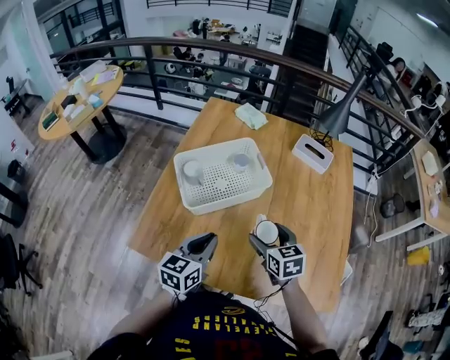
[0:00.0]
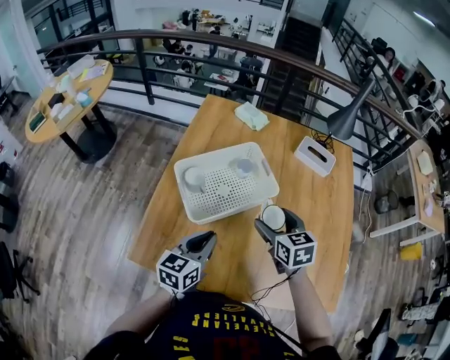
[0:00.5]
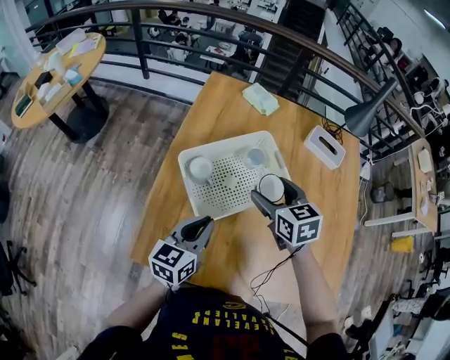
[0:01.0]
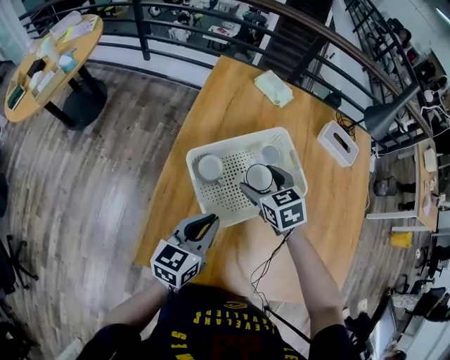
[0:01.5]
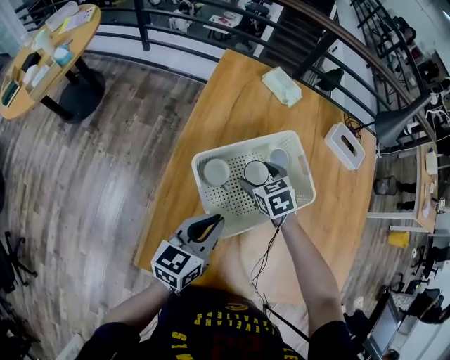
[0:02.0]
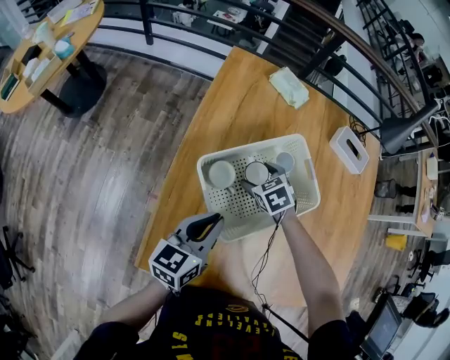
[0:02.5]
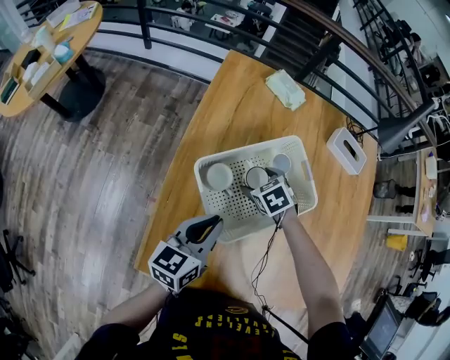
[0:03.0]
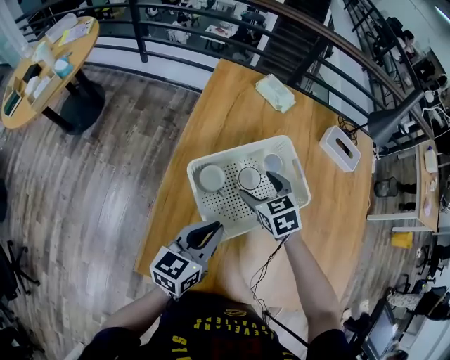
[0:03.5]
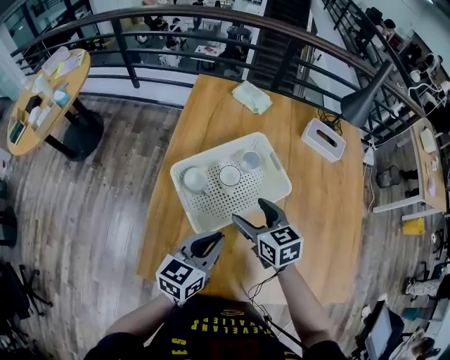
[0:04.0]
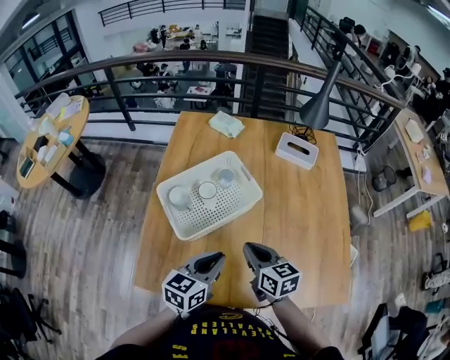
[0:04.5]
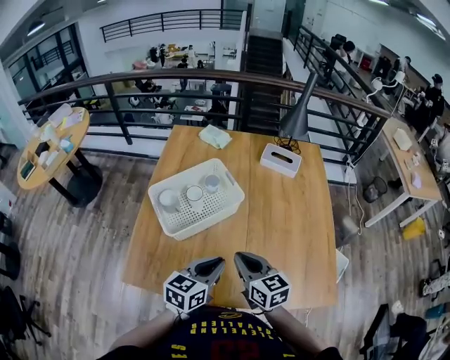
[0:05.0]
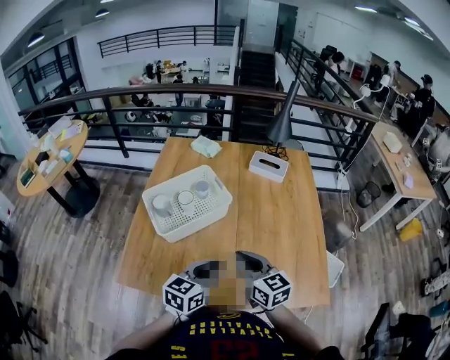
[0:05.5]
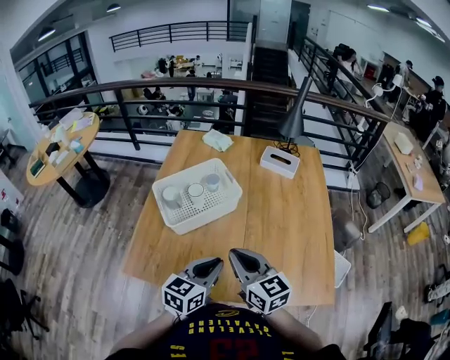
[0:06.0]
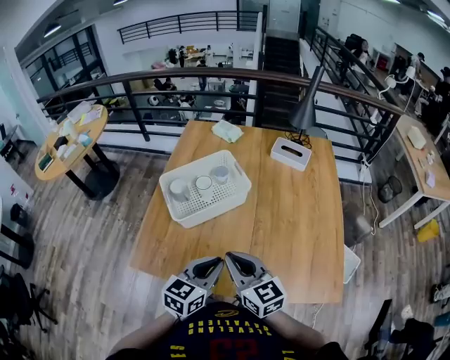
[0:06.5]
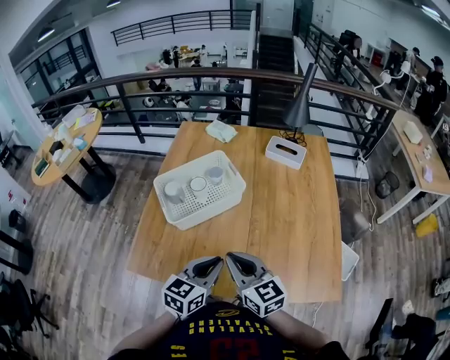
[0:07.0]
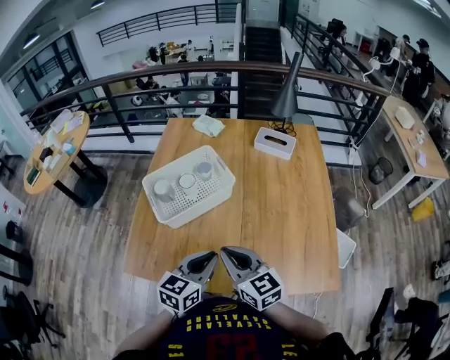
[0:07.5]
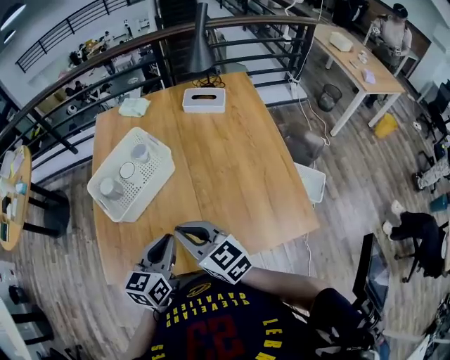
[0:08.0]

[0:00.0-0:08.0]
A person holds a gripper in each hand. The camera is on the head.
0:00.0 to 0:02.0: The left gripper goes approximately 20 cm forward and to the left; the right gripper travels forward and to the left by some 30 cm, and swivels approximately 20 degrees.
0:02.0 to 0:04.0: The right gripper travels backward, upward and to the right by about 15 cm, and rotates some 30 degrees, while the left gripper goes approximately 10 cm to the right and backward.
0:04.0 to 0:06.0: The left gripper is displaced to the right and backward by approximately 20 cm. Meanwhile the right gripper goes about 25 cm backward, to the right and upward, rotates roughly 20 degrees, and closes up.
0:06.0 to 0:08.0: The grippers stay close to where they were, moving slightly.

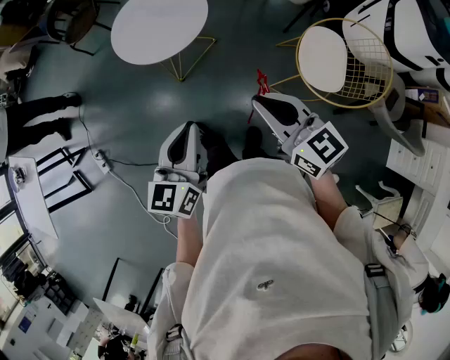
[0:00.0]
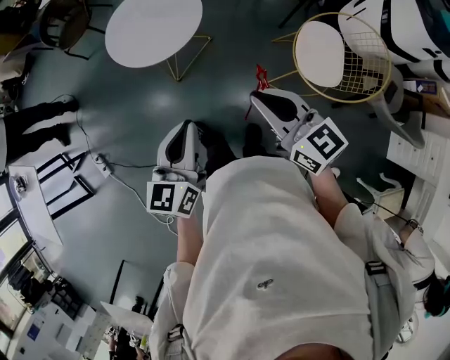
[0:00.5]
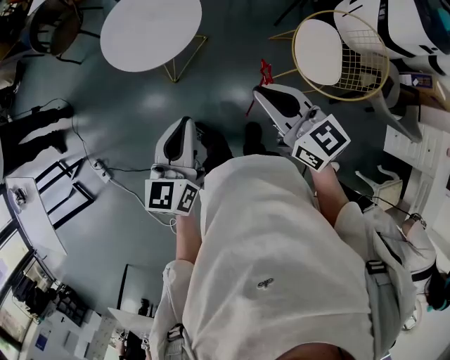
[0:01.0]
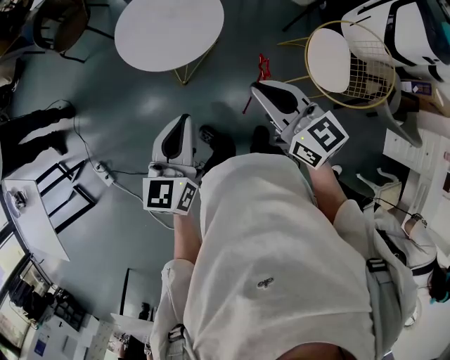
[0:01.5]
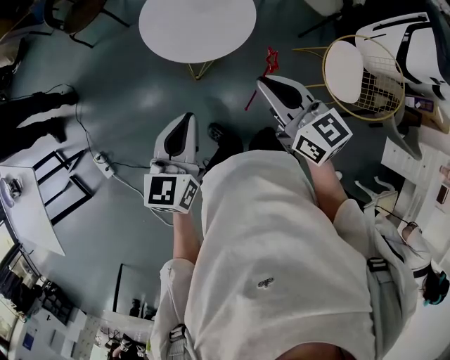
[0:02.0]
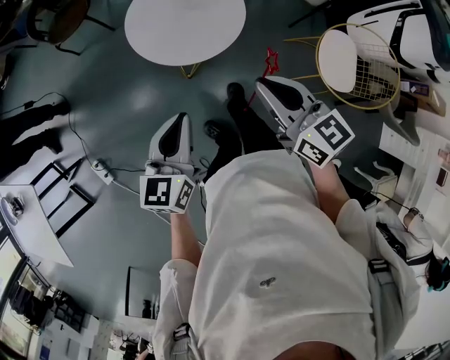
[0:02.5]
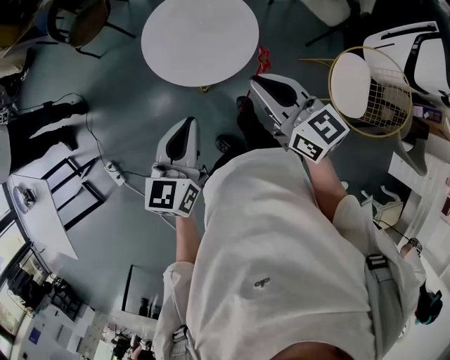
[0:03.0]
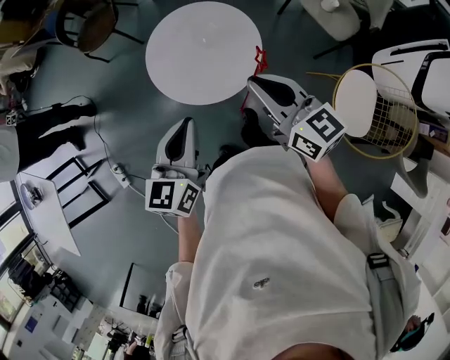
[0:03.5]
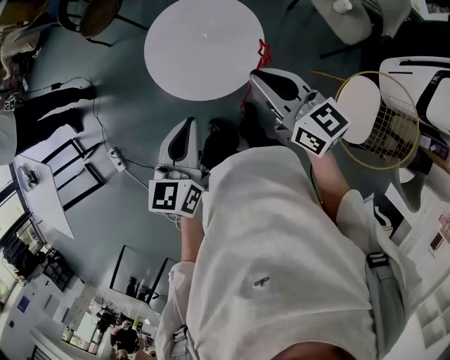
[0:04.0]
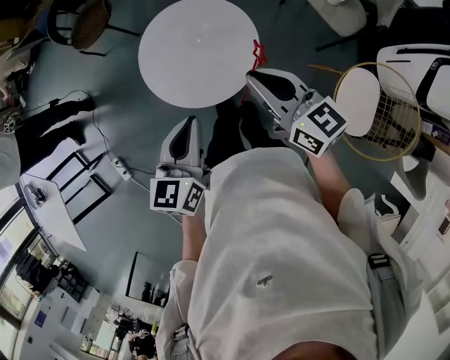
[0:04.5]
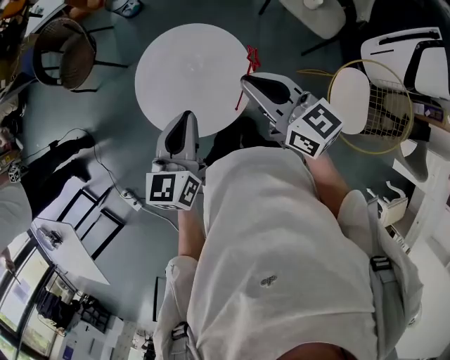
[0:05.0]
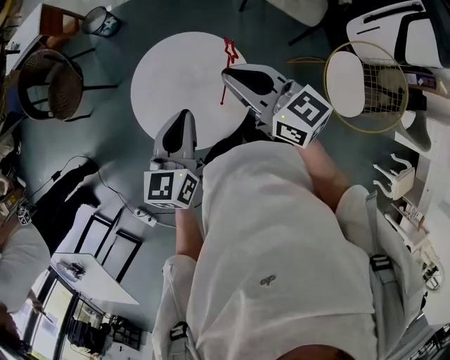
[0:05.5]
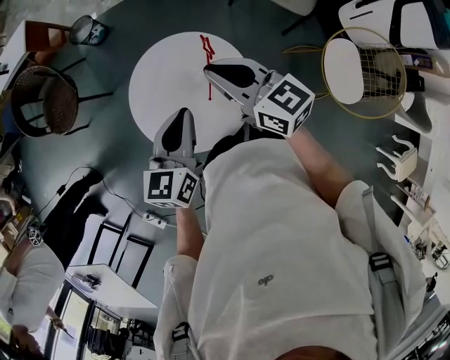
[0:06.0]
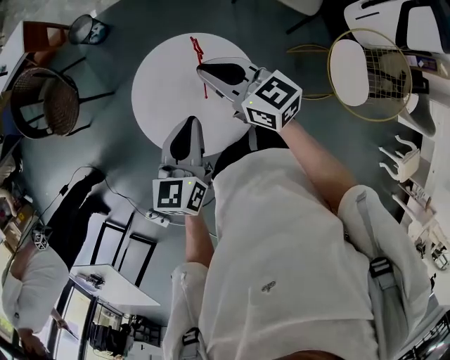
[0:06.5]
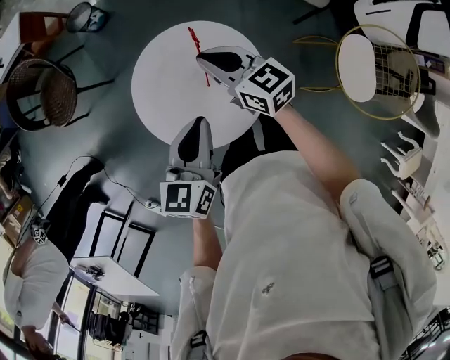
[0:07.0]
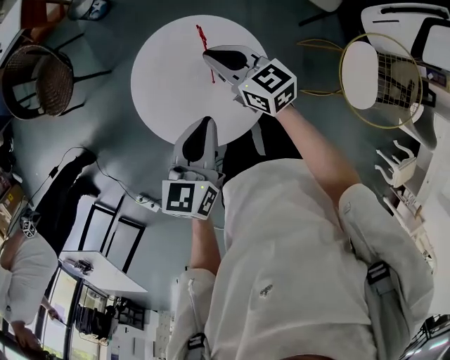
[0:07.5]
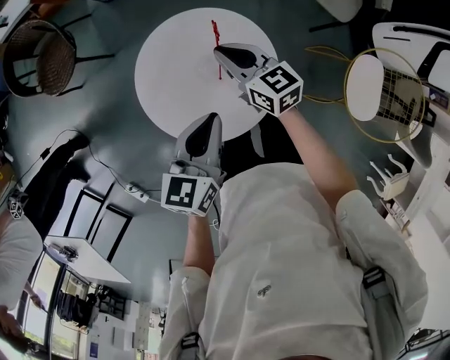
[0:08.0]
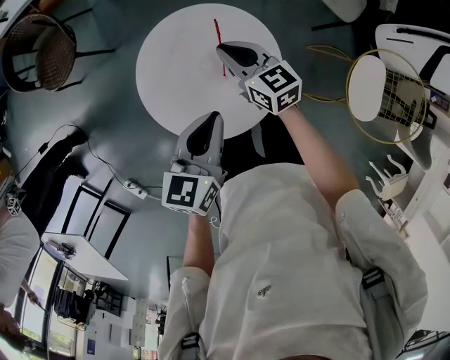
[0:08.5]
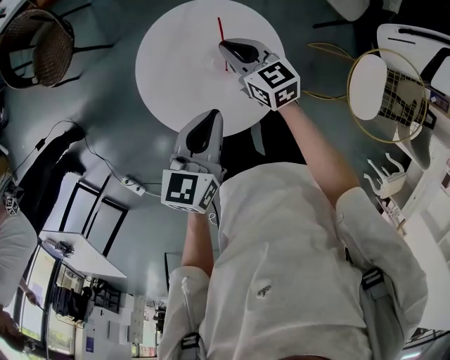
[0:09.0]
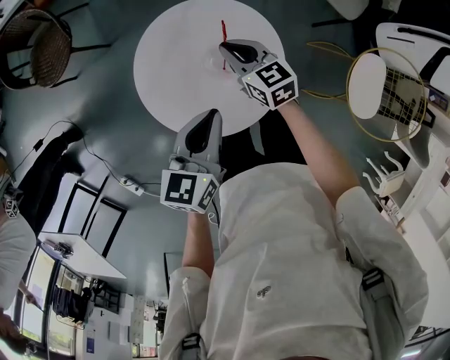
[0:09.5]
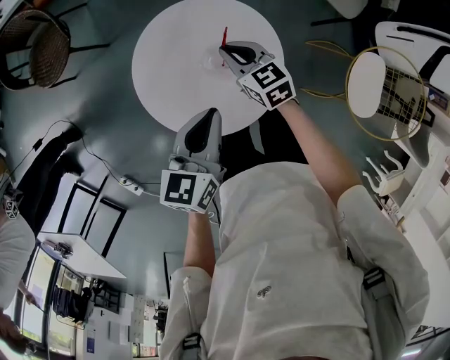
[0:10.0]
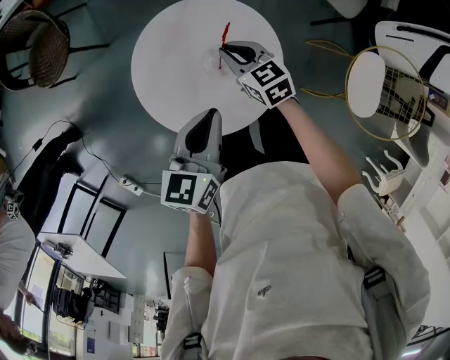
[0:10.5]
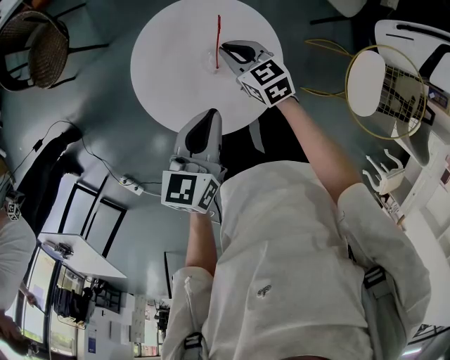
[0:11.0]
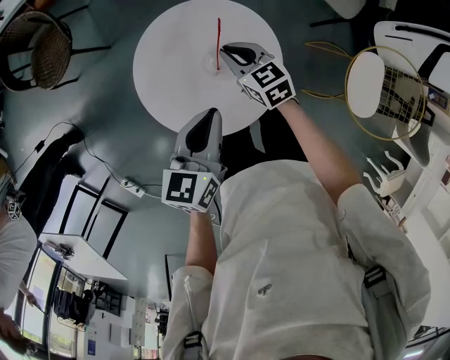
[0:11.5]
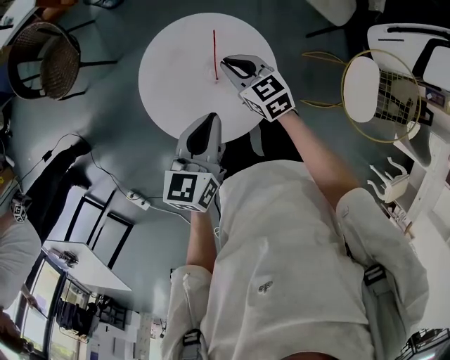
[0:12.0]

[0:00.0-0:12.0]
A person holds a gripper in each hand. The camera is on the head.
0:00.0 to 0:02.0: Both grippers move to the left and forward, about 25 cm.
0:02.0 to 0:04.0: Both grippers move forward and to the right, approximately 20 cm.
0:04.0 to 0:06.0: Both grippers move forward, about 20 cm. The left gripper changes its angle by approximately 30 degrees.
0:06.0 to 0:08.0: The left gripper travels downward by some 5 cm, while the right gripper shifts about 15 cm downward.
0:08.0 to 0:10.0: The right gripper heads downward, covering about 10 cm.
0:10.0 to 0:12.0: The right gripper moves approximately 5 cm.

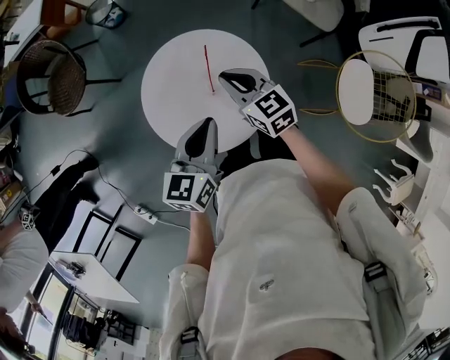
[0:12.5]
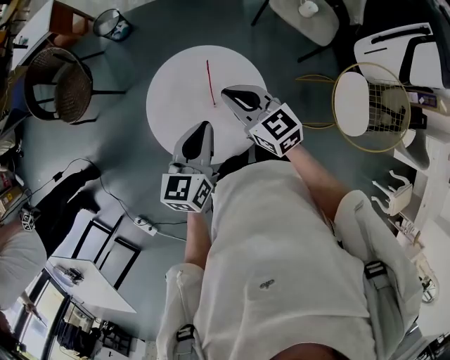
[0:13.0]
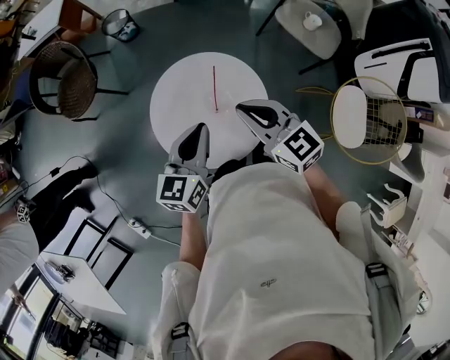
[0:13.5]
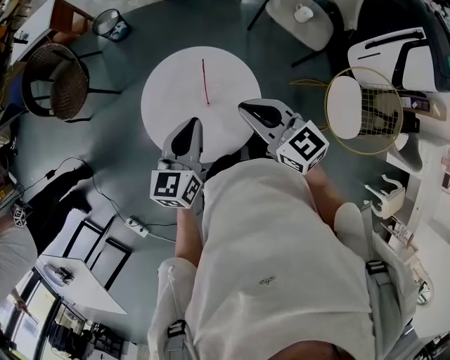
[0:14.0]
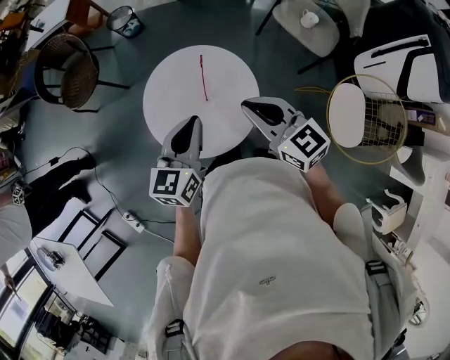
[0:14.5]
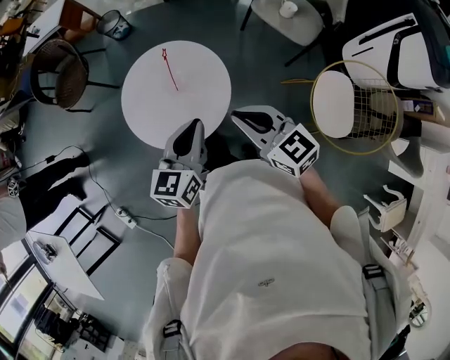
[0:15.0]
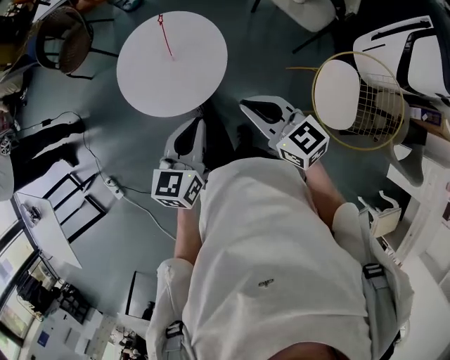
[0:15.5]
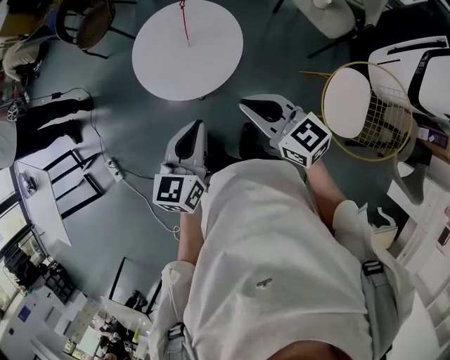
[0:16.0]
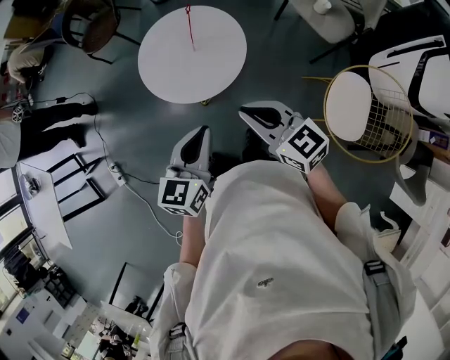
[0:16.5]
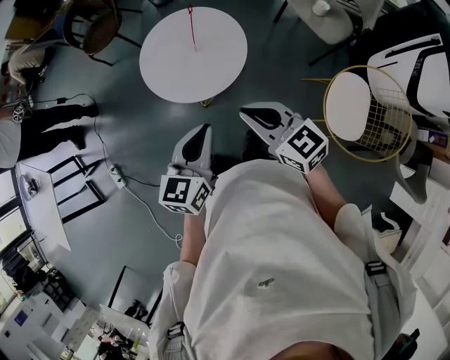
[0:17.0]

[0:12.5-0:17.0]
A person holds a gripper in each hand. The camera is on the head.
0:12.5 to 0:14.5: The right gripper heads upward, backward and to the right, covering some 20 cm. The left gripper is displaced upward by about 5 cm.
0:14.5 to 0:17.0: The grippers both shift backward by some 25 cm.

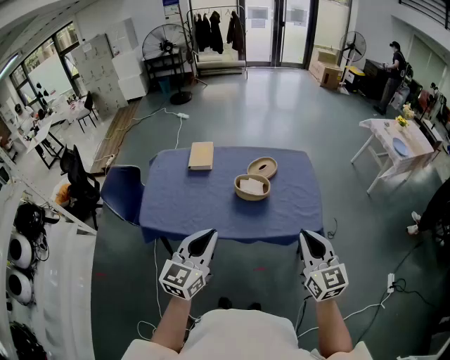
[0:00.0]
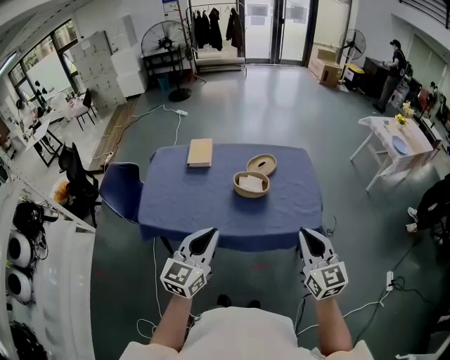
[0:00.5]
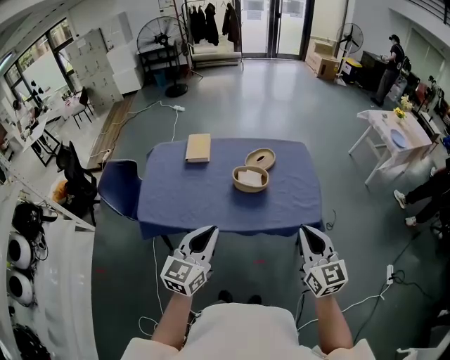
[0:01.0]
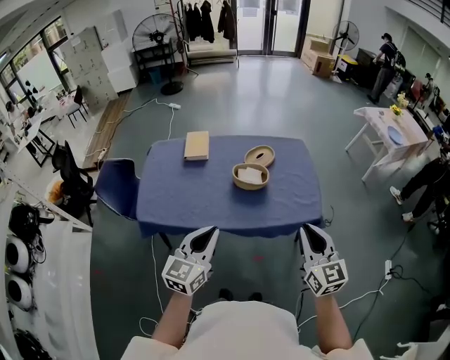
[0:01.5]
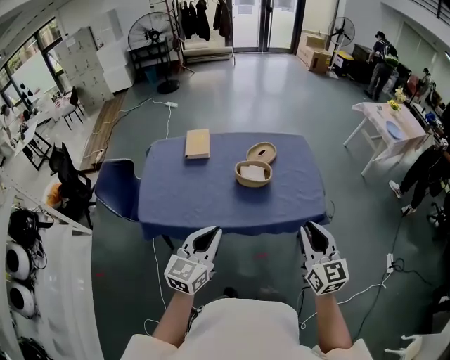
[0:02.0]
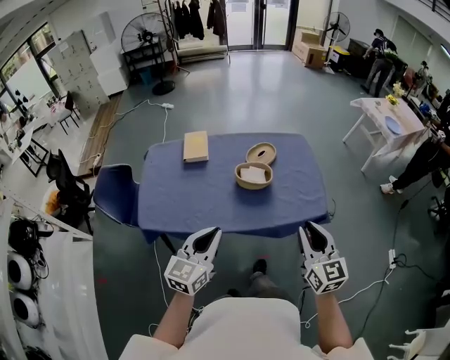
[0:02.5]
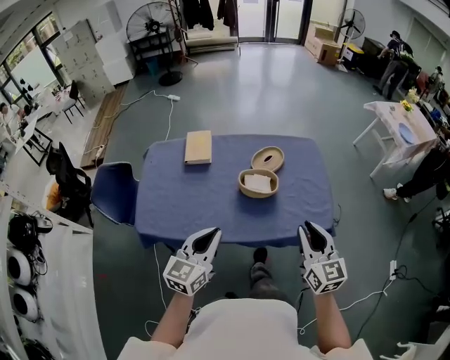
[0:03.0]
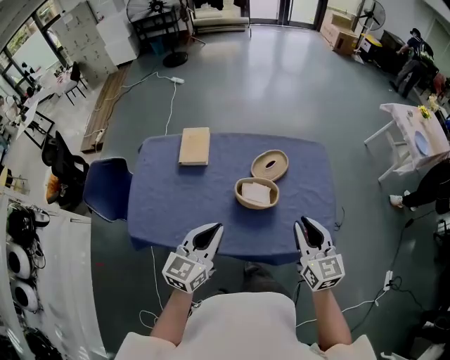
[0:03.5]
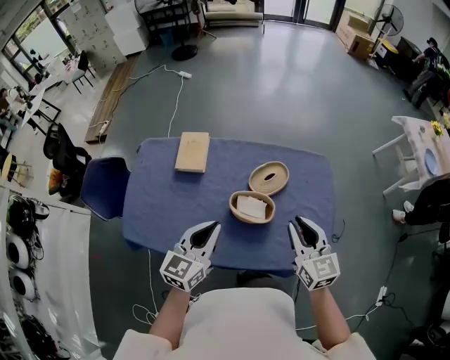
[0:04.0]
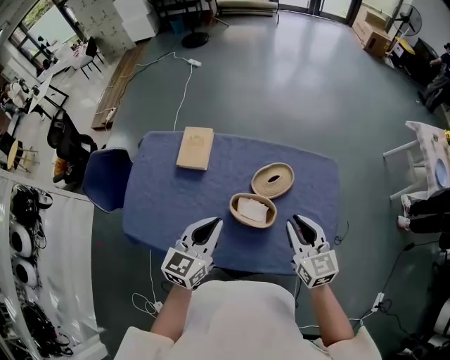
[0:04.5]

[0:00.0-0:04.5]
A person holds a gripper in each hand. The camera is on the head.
0:00.0 to 0:02.0: The right gripper shifts by about 5 cm. Meanwhile the left gripper moves approximately 5 cm.
0:02.0 to 0:04.5: The two grippers go about 40 cm forward. The right gripper changes its angle by approximately 20 degrees.
